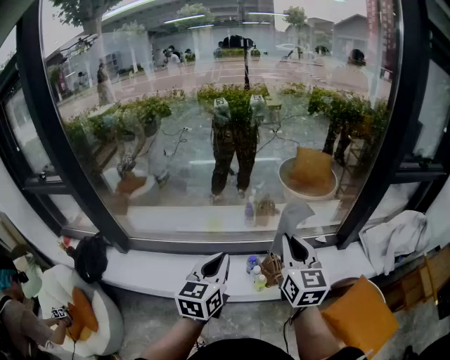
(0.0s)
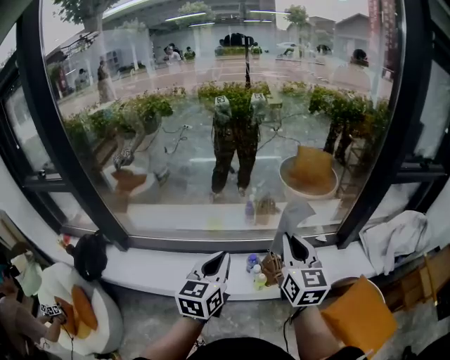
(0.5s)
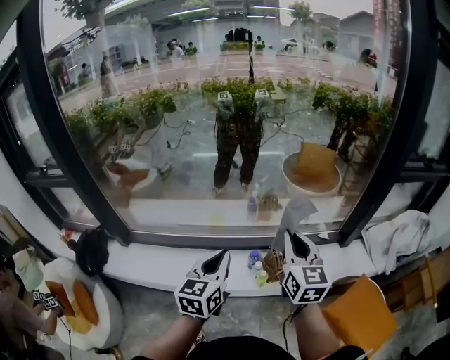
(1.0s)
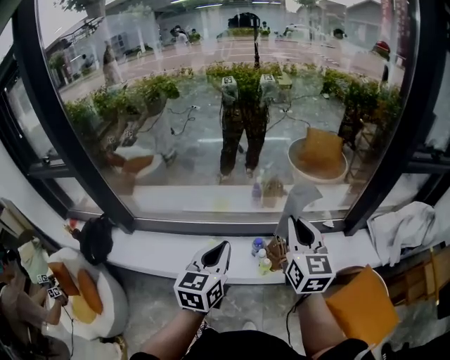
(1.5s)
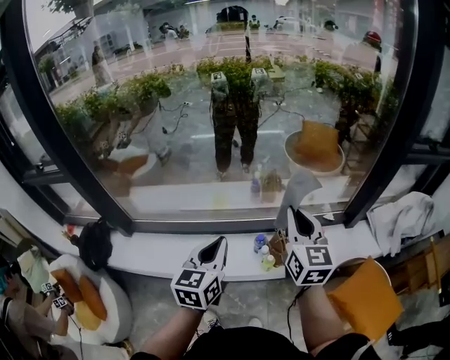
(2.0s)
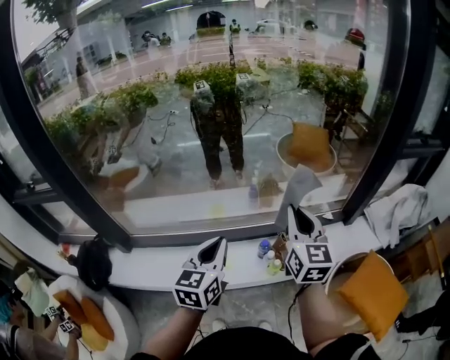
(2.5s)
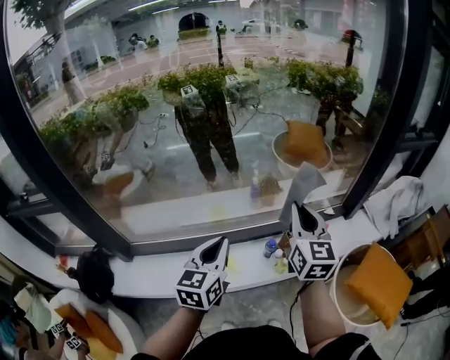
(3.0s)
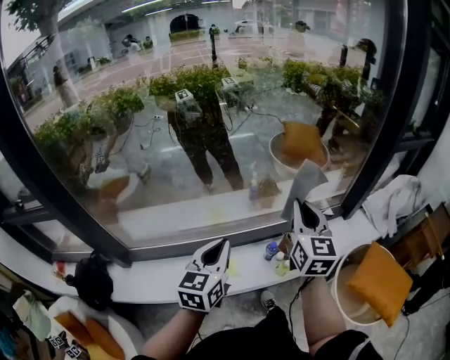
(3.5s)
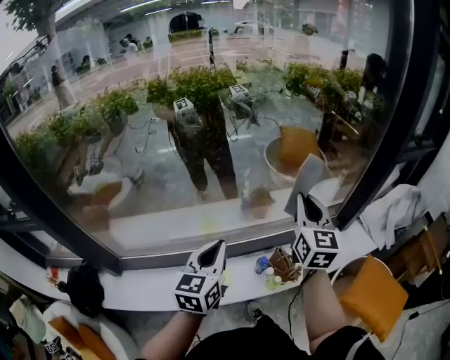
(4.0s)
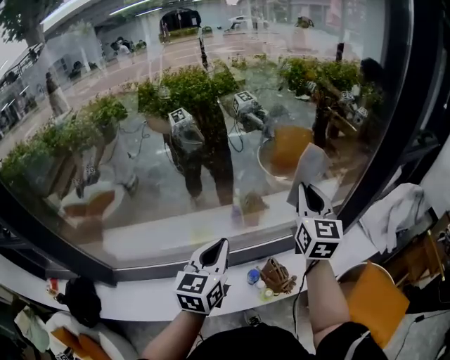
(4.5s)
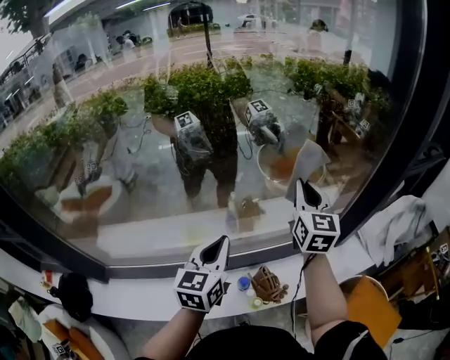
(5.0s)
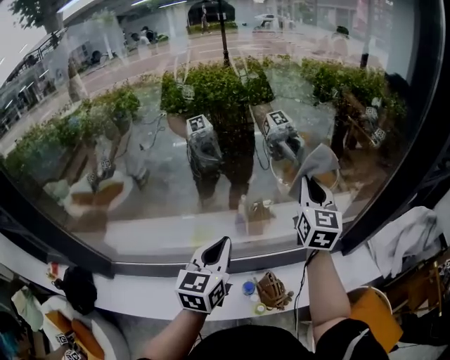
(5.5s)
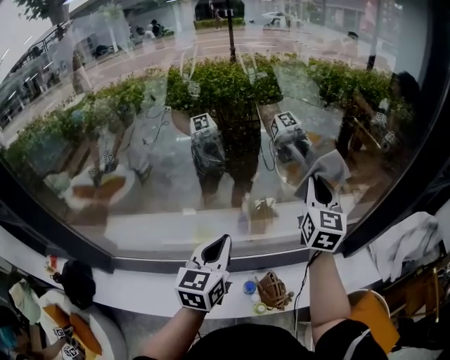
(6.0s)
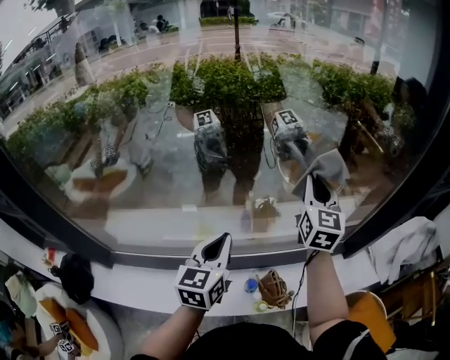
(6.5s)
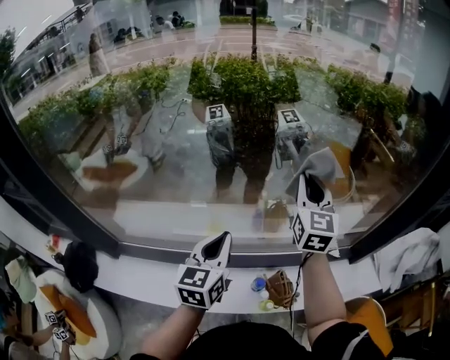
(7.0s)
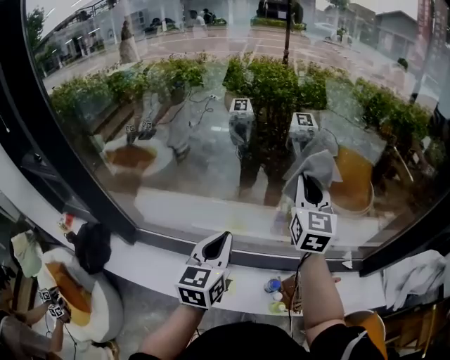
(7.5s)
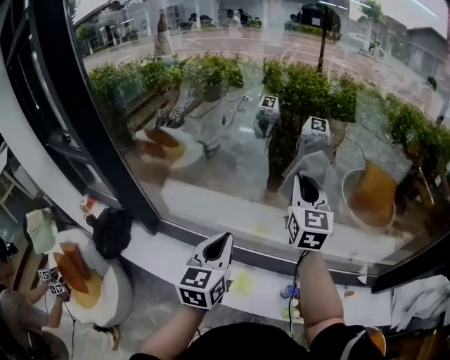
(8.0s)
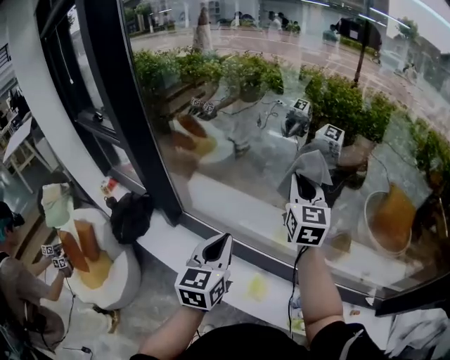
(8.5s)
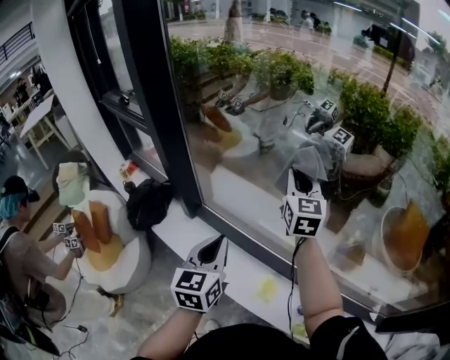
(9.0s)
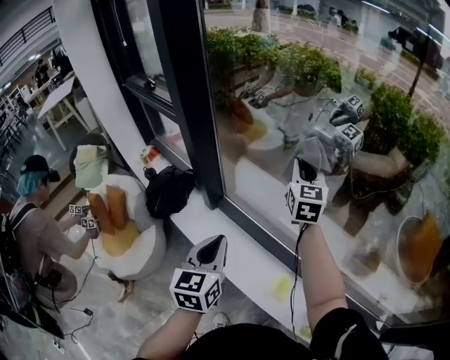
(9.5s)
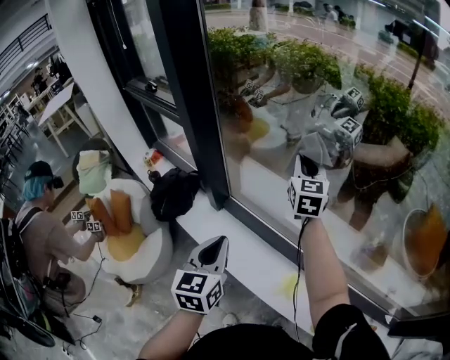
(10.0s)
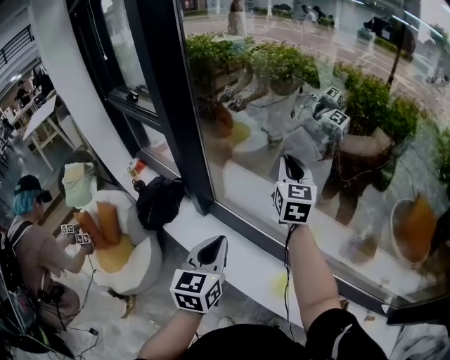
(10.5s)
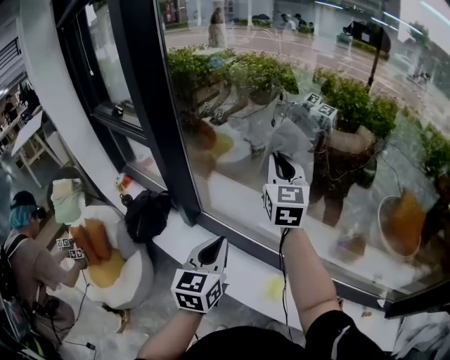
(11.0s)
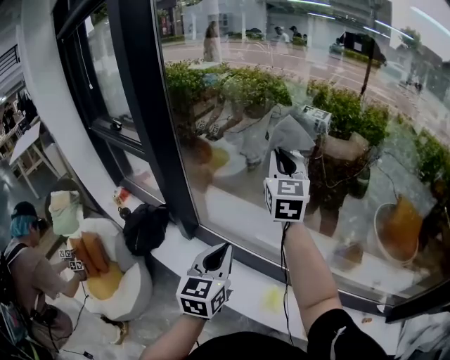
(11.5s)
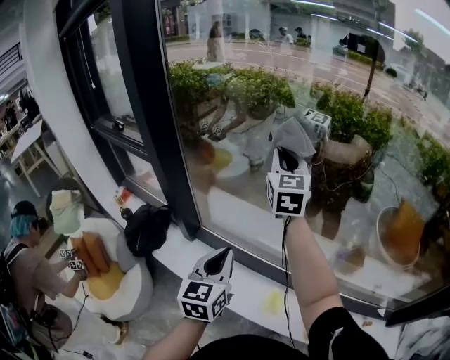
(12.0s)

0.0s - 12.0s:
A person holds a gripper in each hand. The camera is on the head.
0.0s - 2.0s: The grippers make only small movements.
2.0s - 4.0s: The left gripper is displaced forward and to the left by roughly 15 cm, while the right gripper heads forward, covering roughly 15 cm.
4.0s - 6.0s: The left gripper heads forward and to the right, covering some 20 cm. The right gripper moves forward, some 25 cm.
6.0s - 8.0s: The left gripper shifts approximately 30 cm to the left and backward, and turns by approximately 20 degrees. Meanwhile the right gripper goes about 40 cm to the left, and swivels roughly 30 degrees.
8.0s - 10.0s: The two grippers go approximately 35 cm to the left. The right gripper rotates some 20 degrees; the left gripper rotates approximately 30 degrees.
10.0s - 12.0s: The right gripper moves upward, approximately 15 cm, while the left gripper heads to the right, covering some 10 cm.

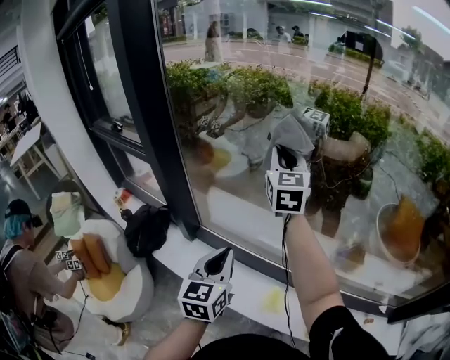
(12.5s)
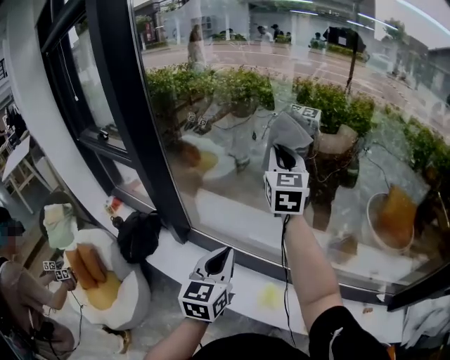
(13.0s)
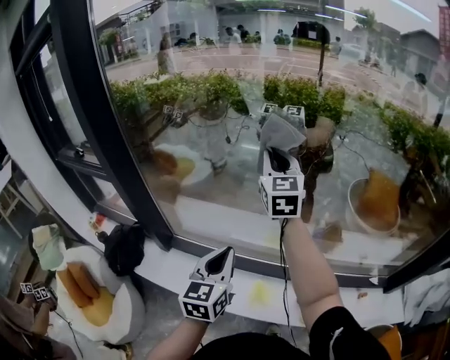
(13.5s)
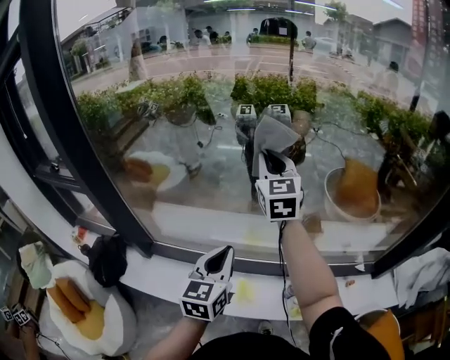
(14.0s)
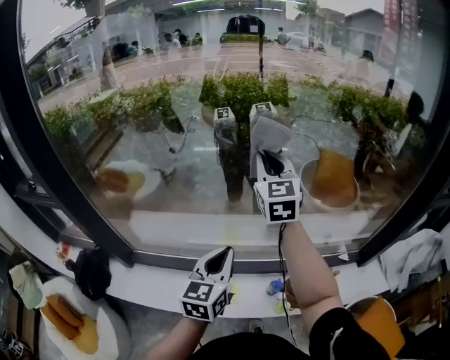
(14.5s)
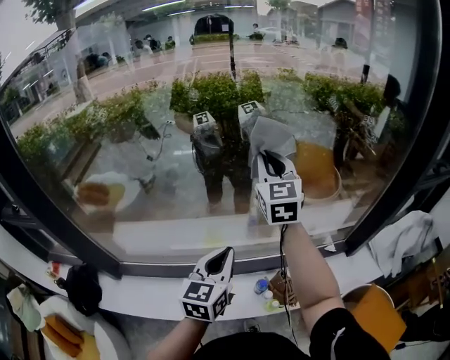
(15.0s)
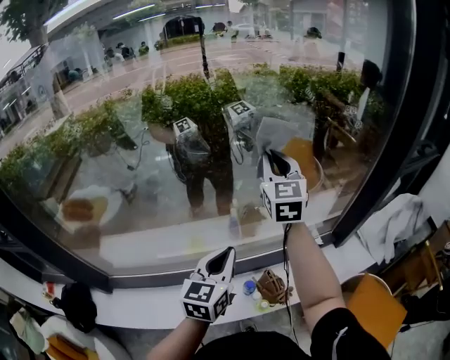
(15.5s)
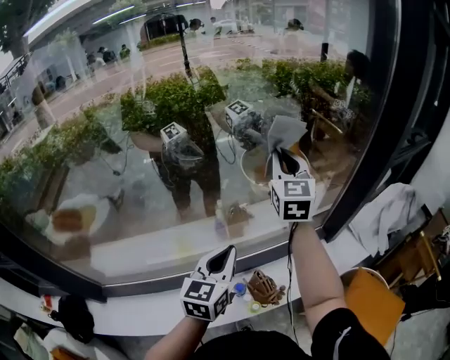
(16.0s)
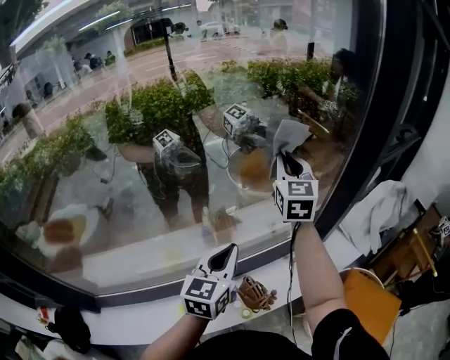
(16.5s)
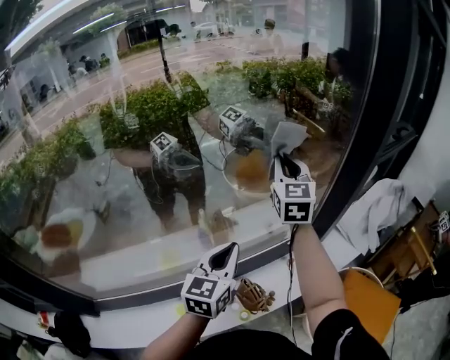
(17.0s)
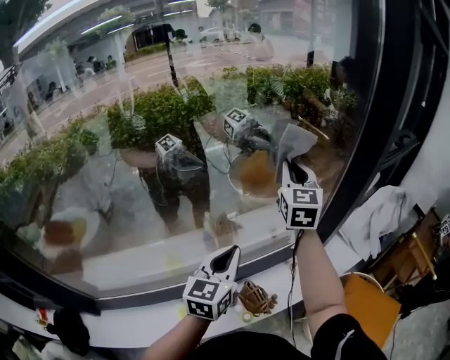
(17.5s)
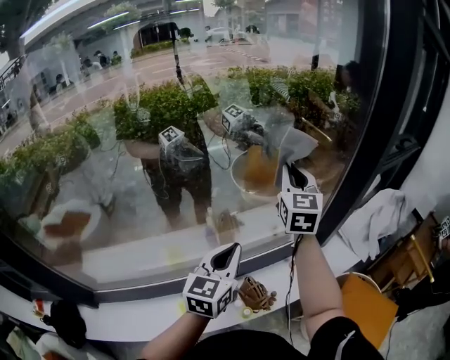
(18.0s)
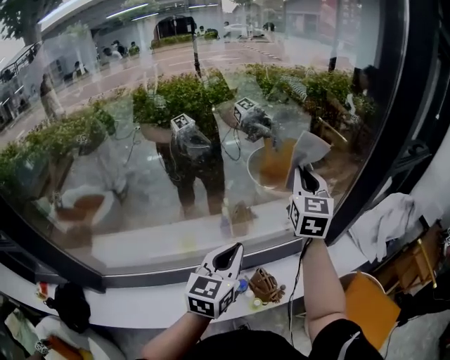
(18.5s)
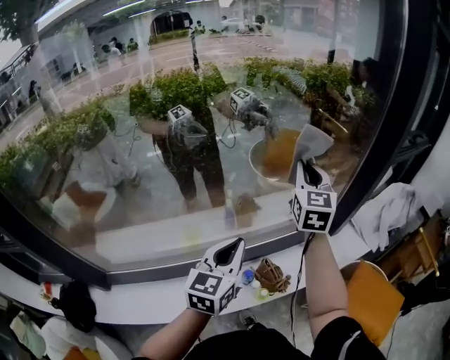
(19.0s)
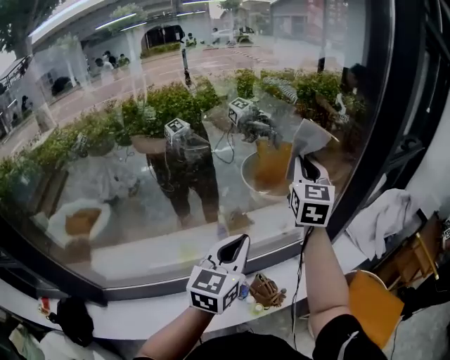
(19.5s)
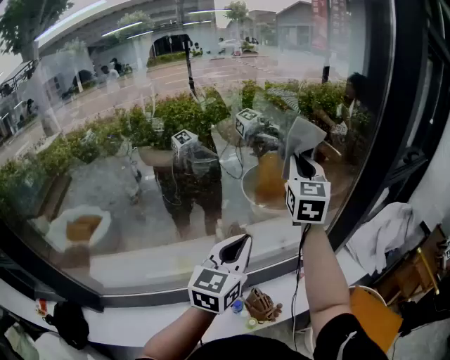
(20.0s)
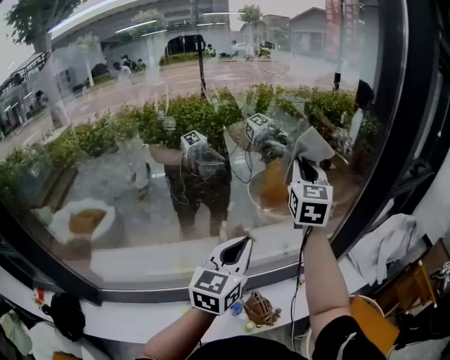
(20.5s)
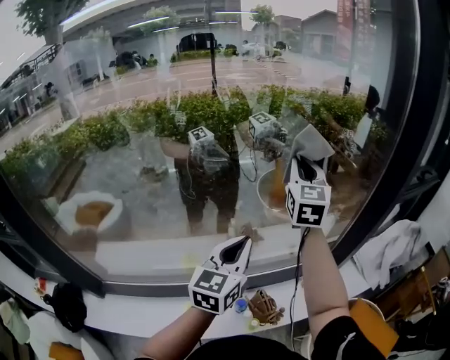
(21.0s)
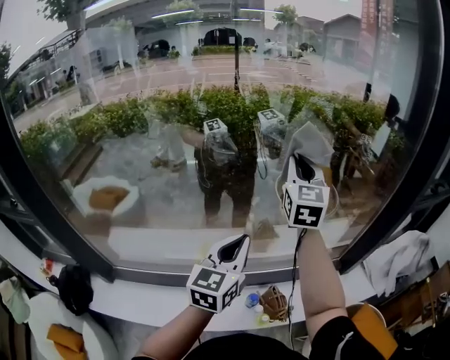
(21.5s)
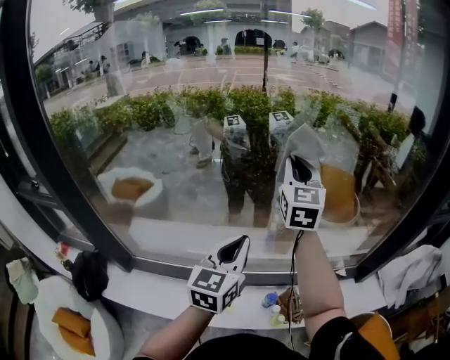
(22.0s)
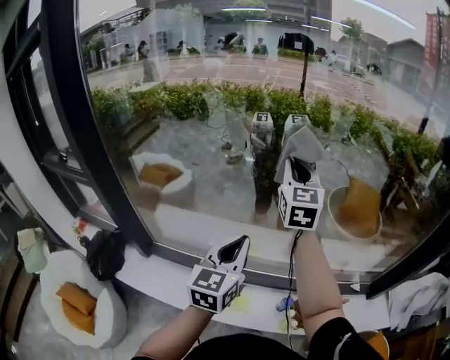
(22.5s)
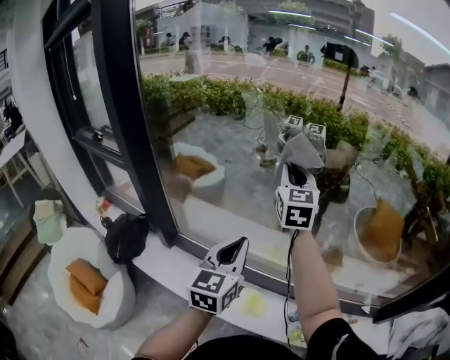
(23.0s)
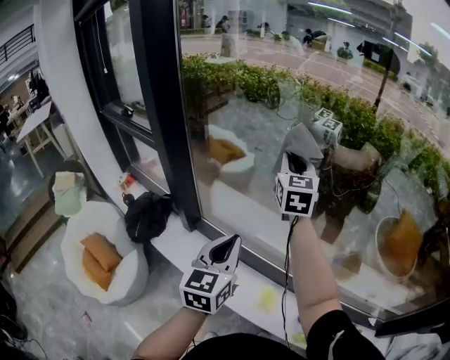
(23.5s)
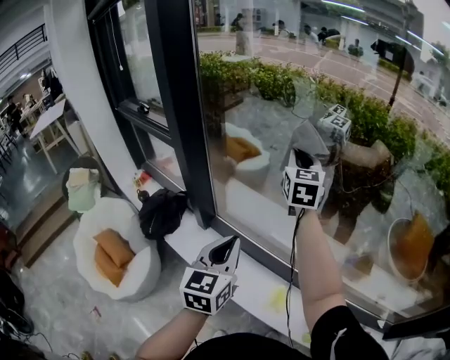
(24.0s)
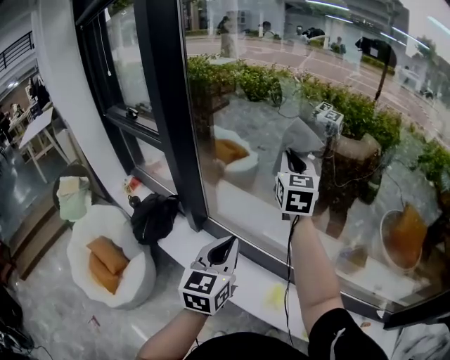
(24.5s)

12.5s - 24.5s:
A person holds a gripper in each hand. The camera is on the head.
12.5s - 14.5s: The grippers both shift to the right by some 35 cm. The left gripper changes its angle by some 30 degrees.
14.5s - 16.5s: The right gripper changes place by some 40 cm, and rotates some 30 degrees; the left gripper ends up about 30 cm from where it was, and rotates roughly 30 degrees.
16.5s - 18.5s: The two grippers go some 10 cm backward.
18.5s - 20.5s: The left gripper heads forward and upward, covering roughly 10 cm. Meanwhile the right gripper travels upward and forward by about 10 cm.
20.5s - 22.5s: The left gripper changes place by about 35 cm, and changes its angle by about 30 degrees; the right gripper ends up some 40 cm from where it was, and swivels about 30 degrees.
22.5s - 24.5s: Both grippers move to the left, about 30 cm. The right gripper swivels some 20 degrees. The left gripper turns by approximately 30 degrees.

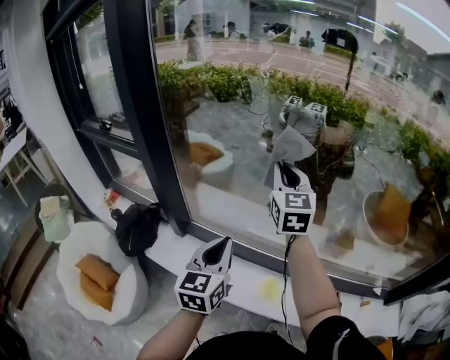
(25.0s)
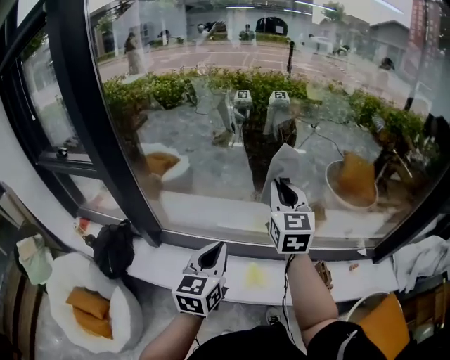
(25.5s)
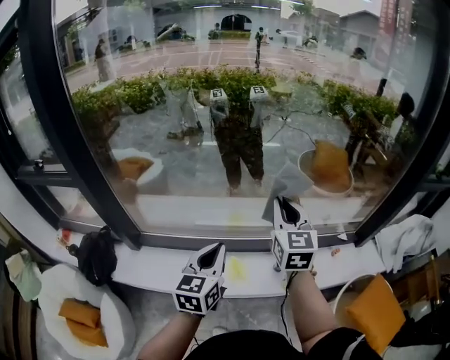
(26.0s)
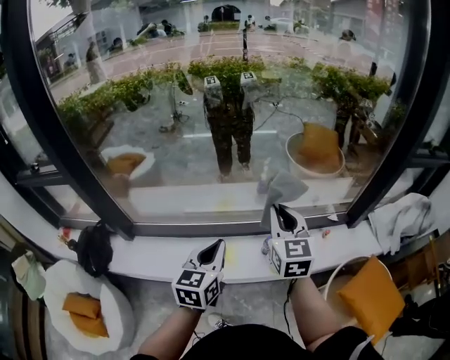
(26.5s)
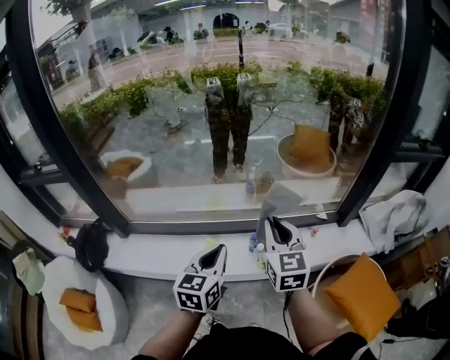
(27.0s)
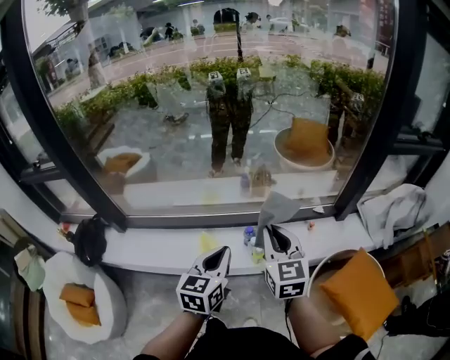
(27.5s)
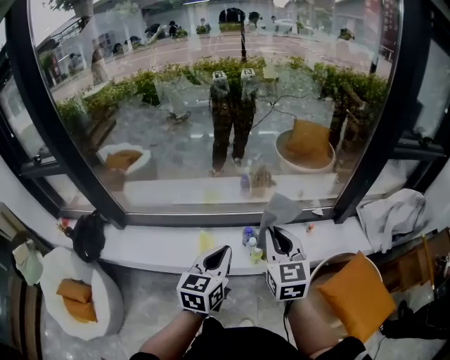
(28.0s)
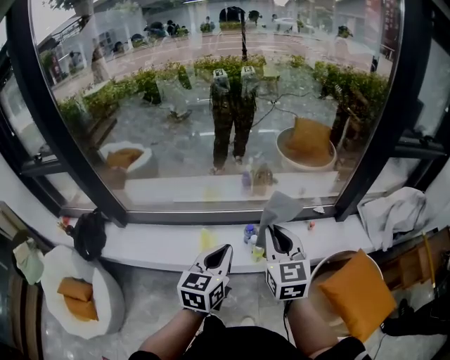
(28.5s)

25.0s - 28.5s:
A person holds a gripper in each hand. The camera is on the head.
25.0s - 27.0s: Both grippers are carried to the right and backward, roughly 50 cm. The right gripper turns by approximately 20 degrees. The left gripper changes its angle by about 30 degrees.
27.0s - 28.5s: The right gripper ends up approximately 5 cm from where it was. Meanwhile the left gripper travels to the right by roughly 5 cm.
